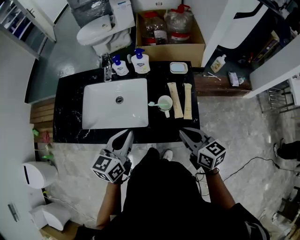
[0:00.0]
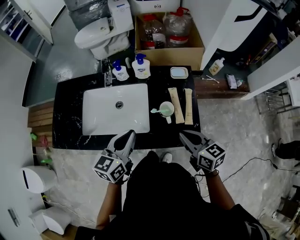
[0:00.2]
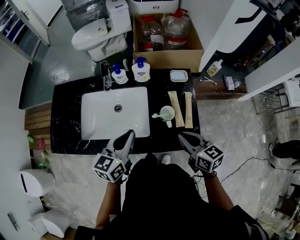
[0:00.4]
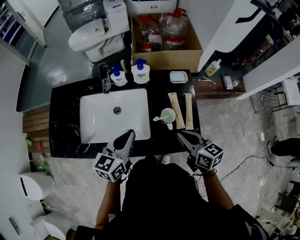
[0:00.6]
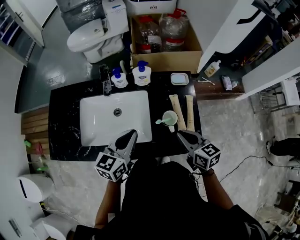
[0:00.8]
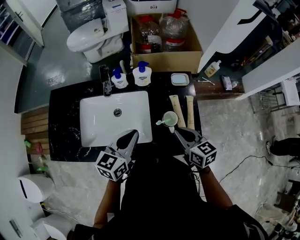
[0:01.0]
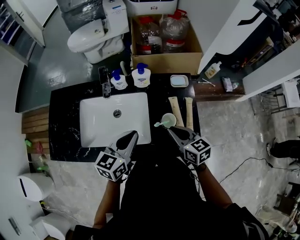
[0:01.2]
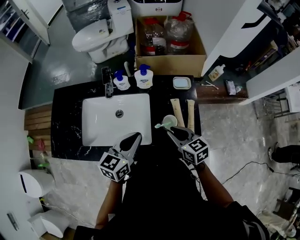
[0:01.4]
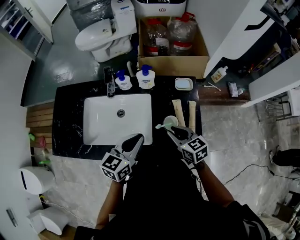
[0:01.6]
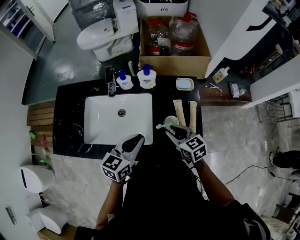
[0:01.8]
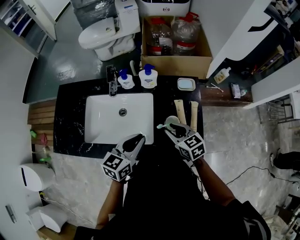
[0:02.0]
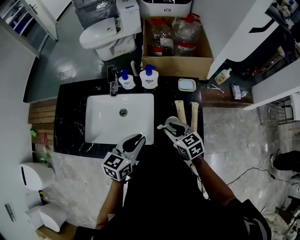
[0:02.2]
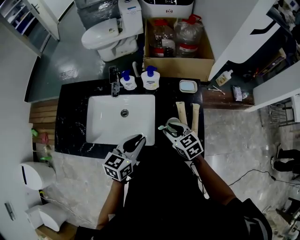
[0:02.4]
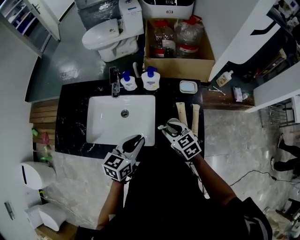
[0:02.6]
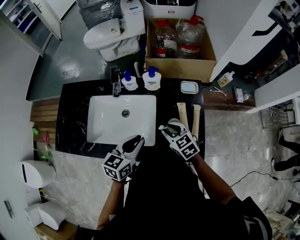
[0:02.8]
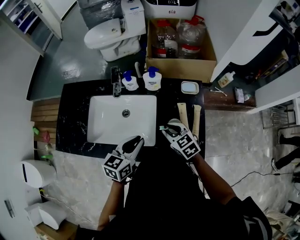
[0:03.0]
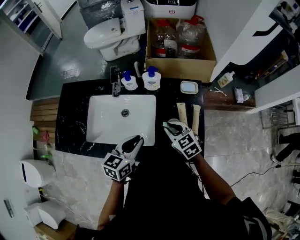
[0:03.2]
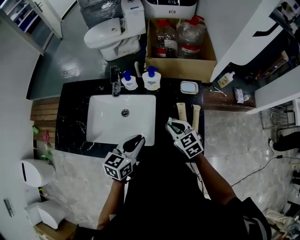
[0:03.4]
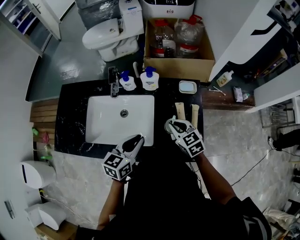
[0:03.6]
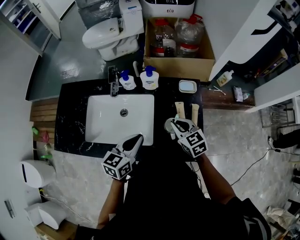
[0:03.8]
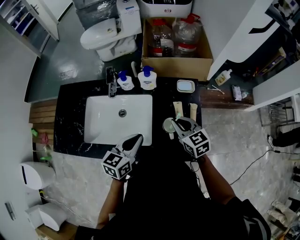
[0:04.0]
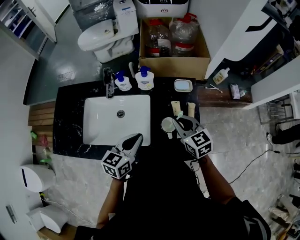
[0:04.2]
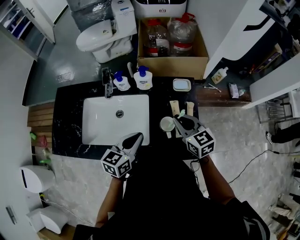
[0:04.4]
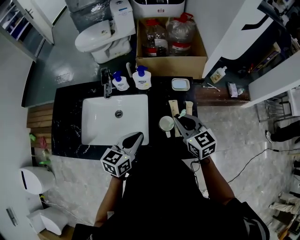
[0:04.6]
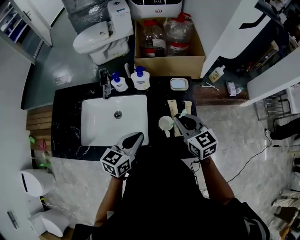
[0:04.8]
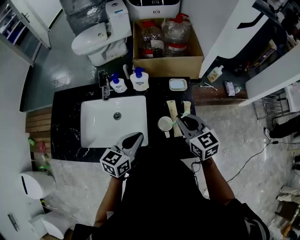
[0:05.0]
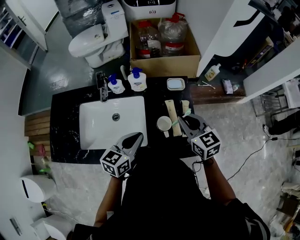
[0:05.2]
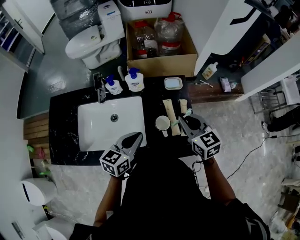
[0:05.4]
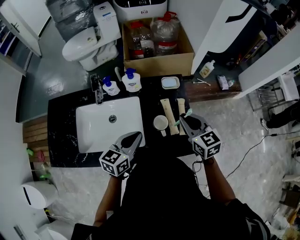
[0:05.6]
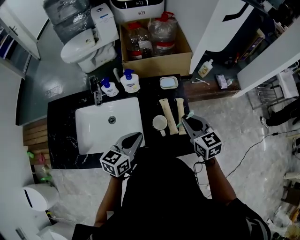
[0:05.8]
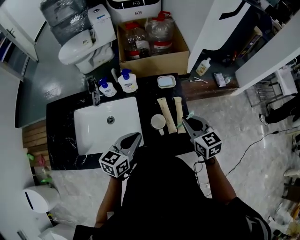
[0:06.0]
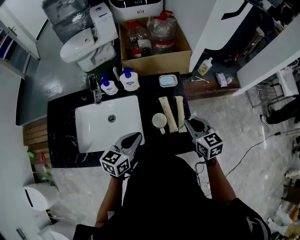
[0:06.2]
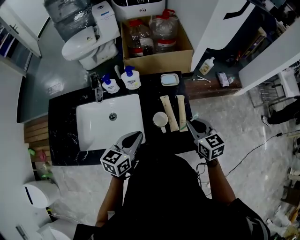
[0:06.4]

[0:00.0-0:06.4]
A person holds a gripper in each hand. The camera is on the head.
0:00.0 to 0:01.6: The left gripper heads forward, covering about 5 cm. The right gripper goes some 15 cm forward, downward and to the left.
0:01.6 to 0:03.2: The grippers stay close to where they were, moving slightly.
0:03.2 to 0:04.8: The right gripper goes roughly 15 cm upward and to the right, and turns by roughly 20 degrees.
0:04.8 to 0:06.4: The right gripper goes roughly 10 cm to the right.

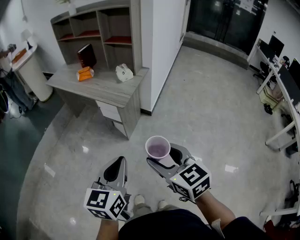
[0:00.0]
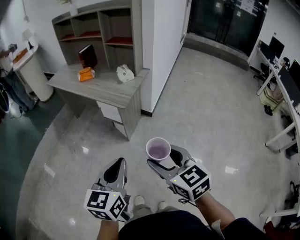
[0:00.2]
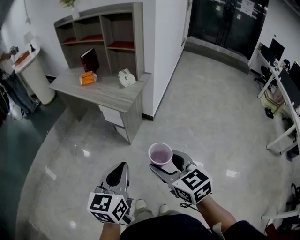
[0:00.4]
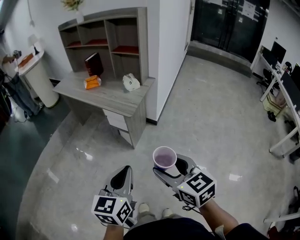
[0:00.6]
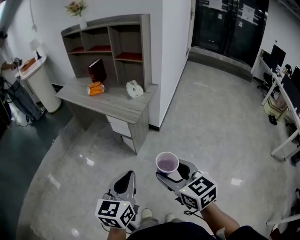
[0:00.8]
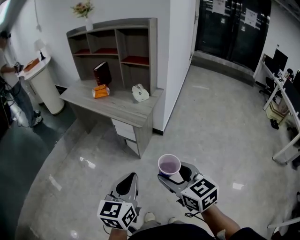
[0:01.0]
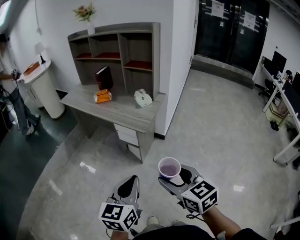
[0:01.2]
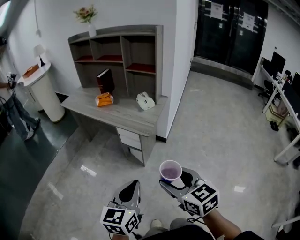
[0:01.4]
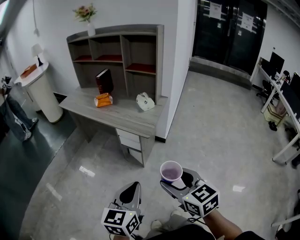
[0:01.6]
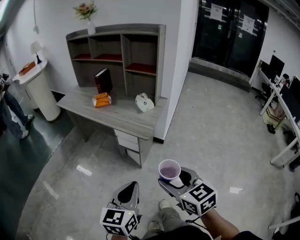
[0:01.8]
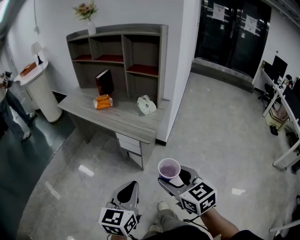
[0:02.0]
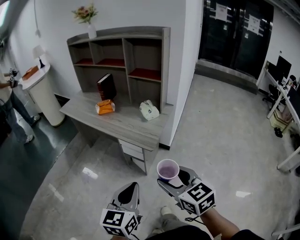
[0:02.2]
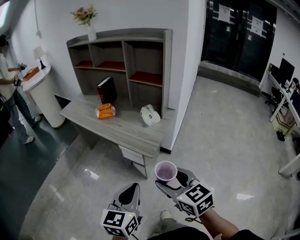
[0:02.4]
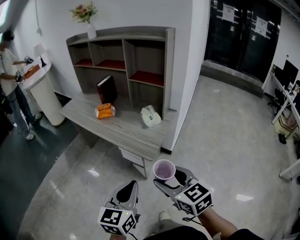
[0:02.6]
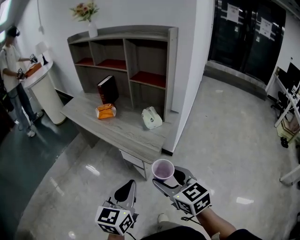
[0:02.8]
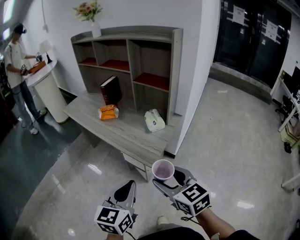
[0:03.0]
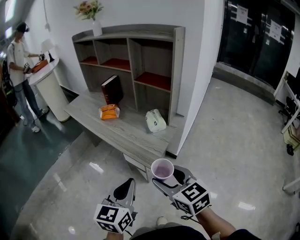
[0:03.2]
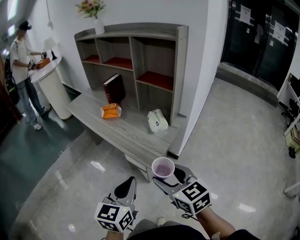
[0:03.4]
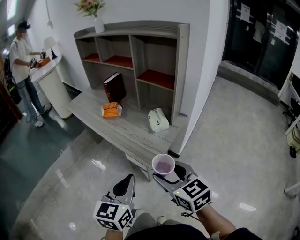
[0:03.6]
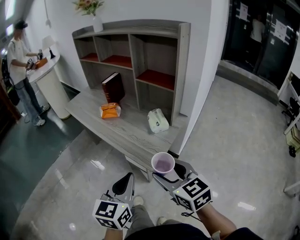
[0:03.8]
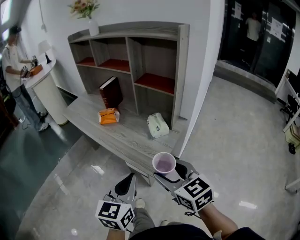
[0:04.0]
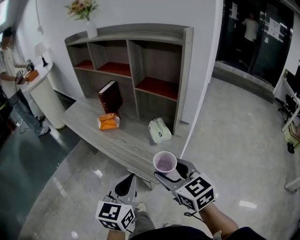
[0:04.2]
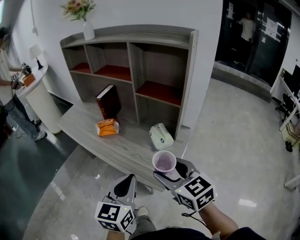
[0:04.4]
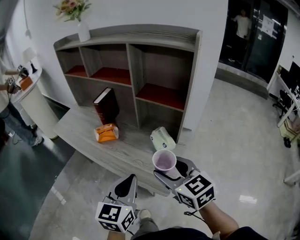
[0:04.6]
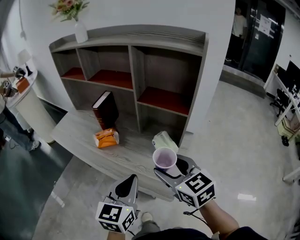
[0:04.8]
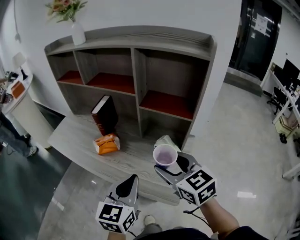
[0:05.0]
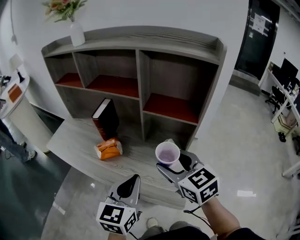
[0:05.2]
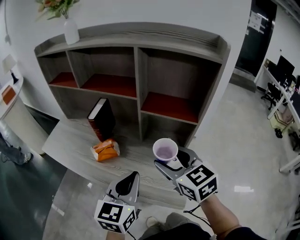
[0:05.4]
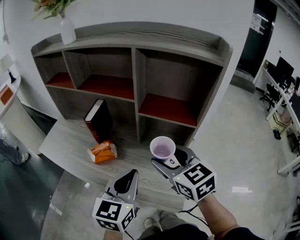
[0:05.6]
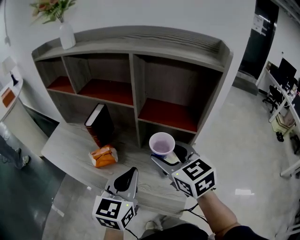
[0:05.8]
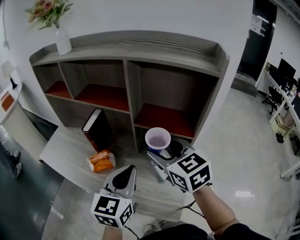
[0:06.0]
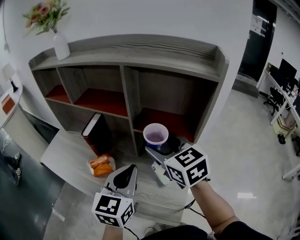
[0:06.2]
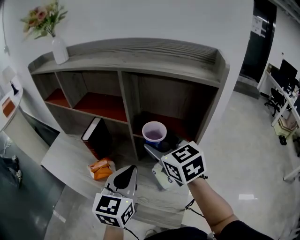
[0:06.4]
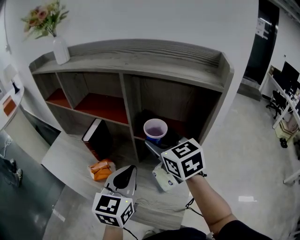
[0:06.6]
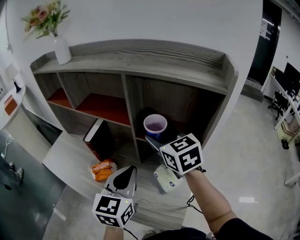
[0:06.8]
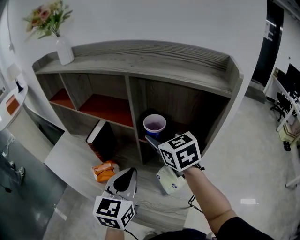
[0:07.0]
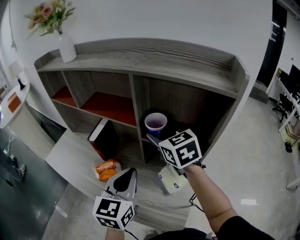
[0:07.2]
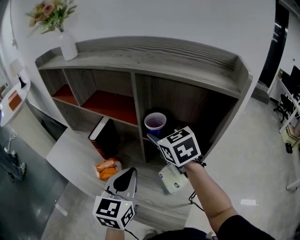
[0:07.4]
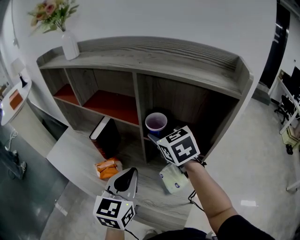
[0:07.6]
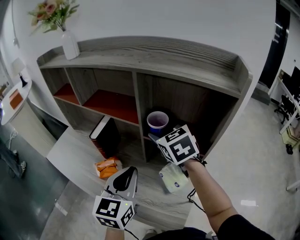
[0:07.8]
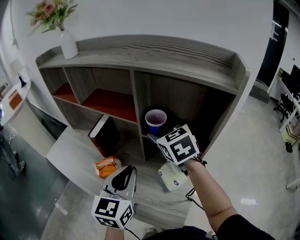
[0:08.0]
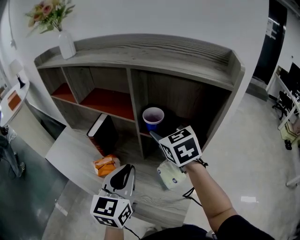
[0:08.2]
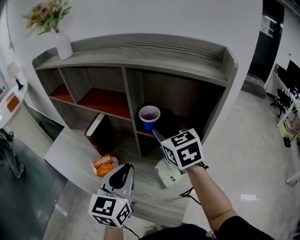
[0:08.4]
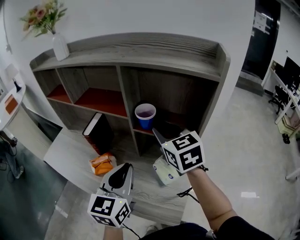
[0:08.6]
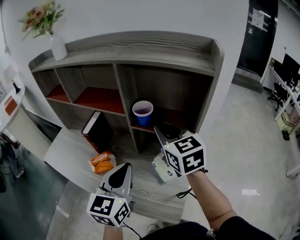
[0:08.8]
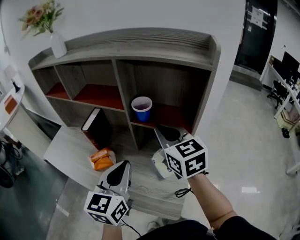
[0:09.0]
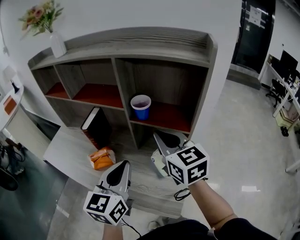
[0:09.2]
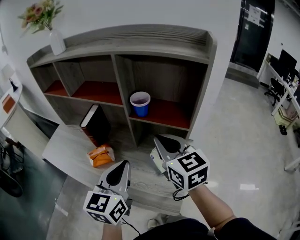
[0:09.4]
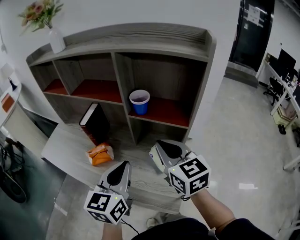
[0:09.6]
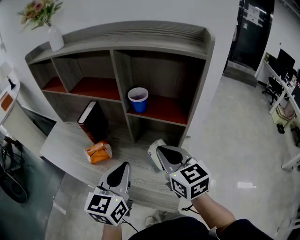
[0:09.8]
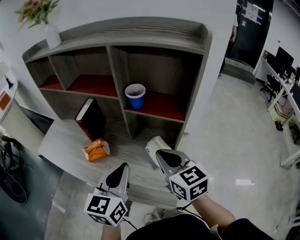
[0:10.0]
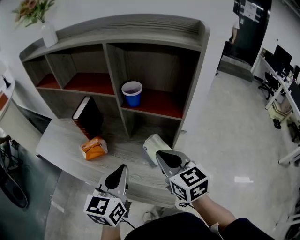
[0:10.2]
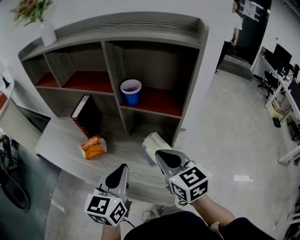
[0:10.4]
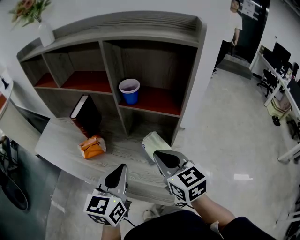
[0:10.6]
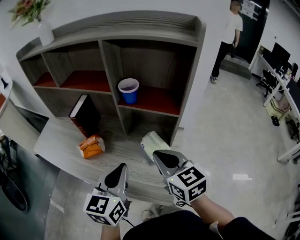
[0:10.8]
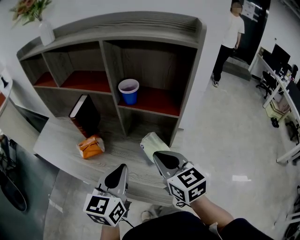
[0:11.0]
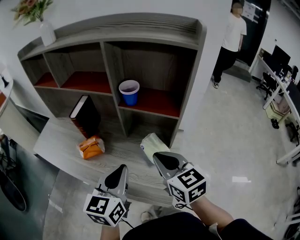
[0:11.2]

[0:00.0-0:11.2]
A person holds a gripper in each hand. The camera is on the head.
0:00.0 to 0:01.6: Both grippers move to the left and forward, some 10 cm.
0:01.6 to 0:03.2: The two grippers go about 20 cm forward.
0:03.2 to 0:04.8: Both grippers travel together forward, roughly 25 cm.
0:04.8 to 0:06.4: Both grippers travel together forward, about 20 cm.
0:06.4 to 0:08.0: The right gripper heads forward, covering roughly 10 cm.
0:08.0 to 0:09.6: The right gripper moves backward, roughly 15 cm, rotates approximately 20 degrees, and closes up. The left gripper is displaced backward by roughly 5 cm.
0:09.6 to 0:11.2: The right gripper goes approximately 10 cm backward and downward.

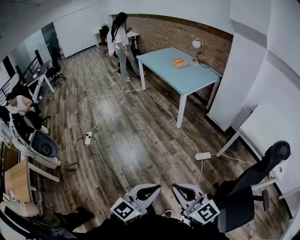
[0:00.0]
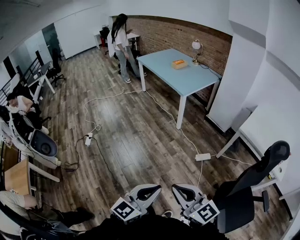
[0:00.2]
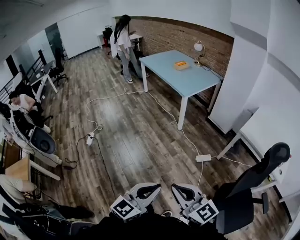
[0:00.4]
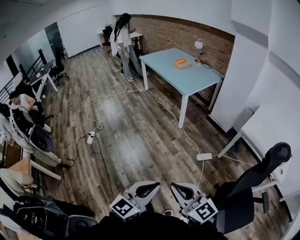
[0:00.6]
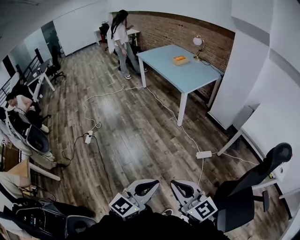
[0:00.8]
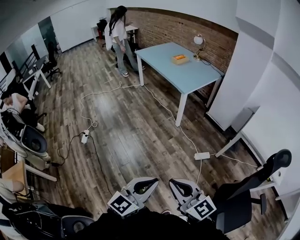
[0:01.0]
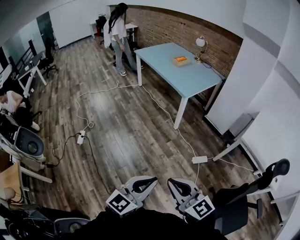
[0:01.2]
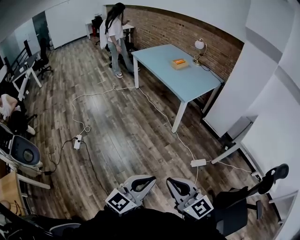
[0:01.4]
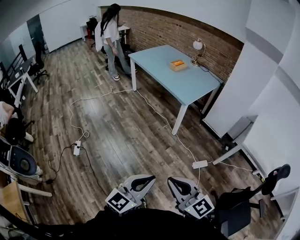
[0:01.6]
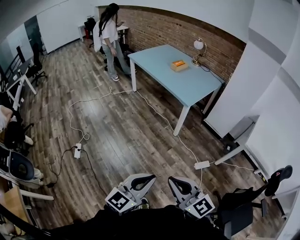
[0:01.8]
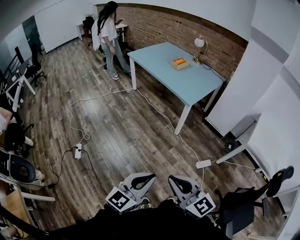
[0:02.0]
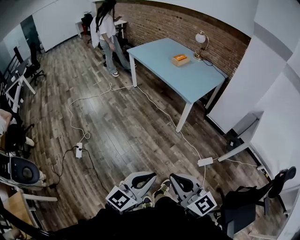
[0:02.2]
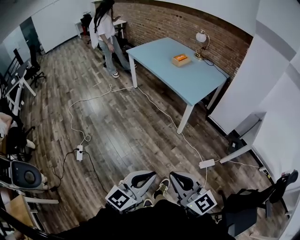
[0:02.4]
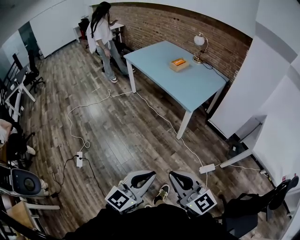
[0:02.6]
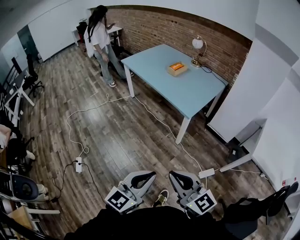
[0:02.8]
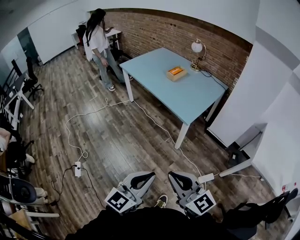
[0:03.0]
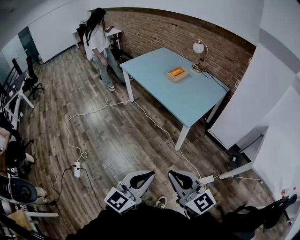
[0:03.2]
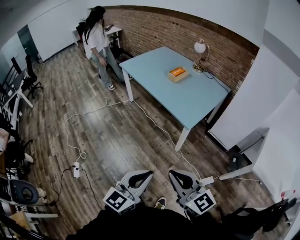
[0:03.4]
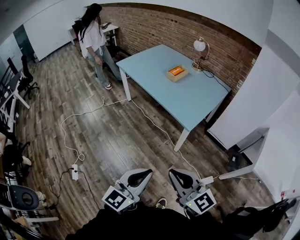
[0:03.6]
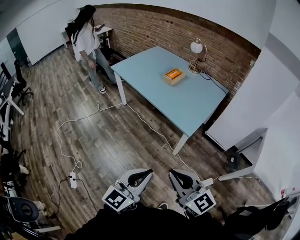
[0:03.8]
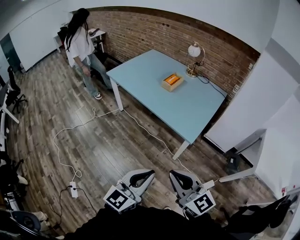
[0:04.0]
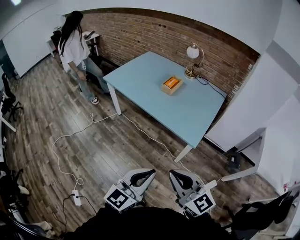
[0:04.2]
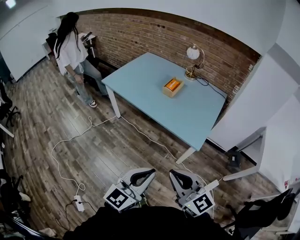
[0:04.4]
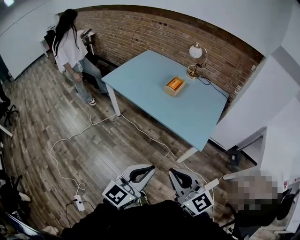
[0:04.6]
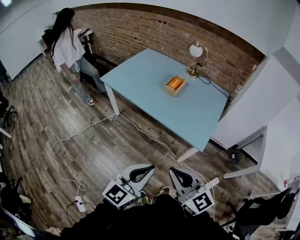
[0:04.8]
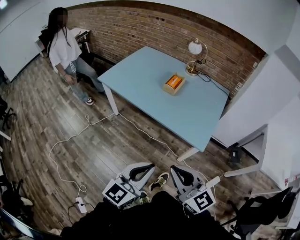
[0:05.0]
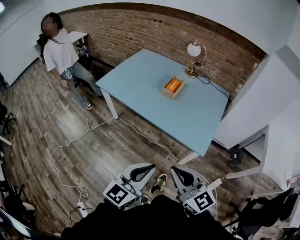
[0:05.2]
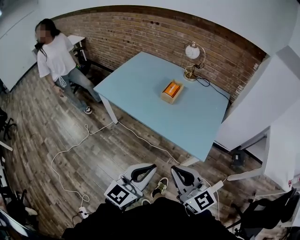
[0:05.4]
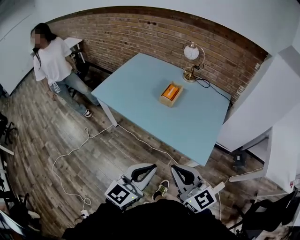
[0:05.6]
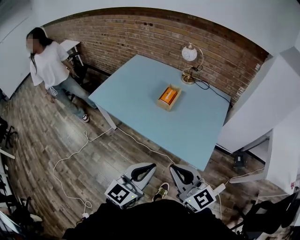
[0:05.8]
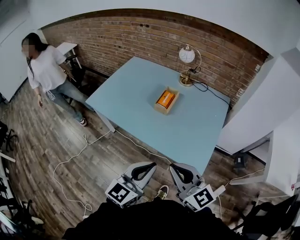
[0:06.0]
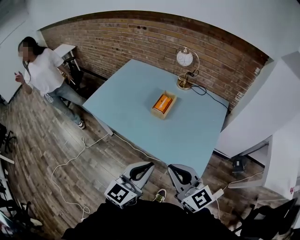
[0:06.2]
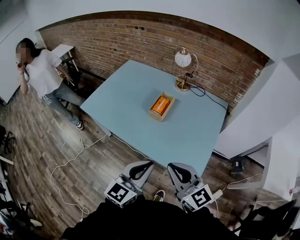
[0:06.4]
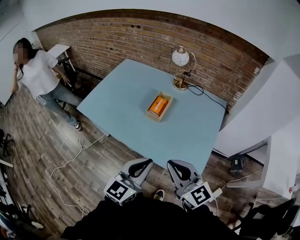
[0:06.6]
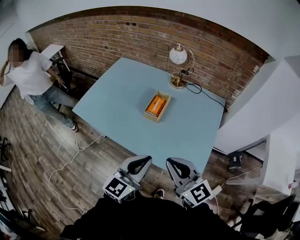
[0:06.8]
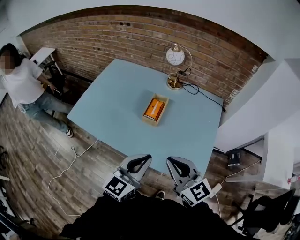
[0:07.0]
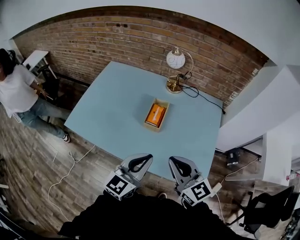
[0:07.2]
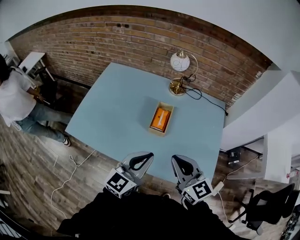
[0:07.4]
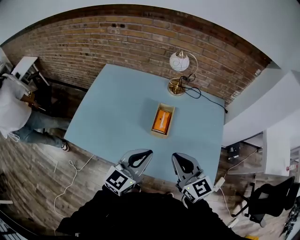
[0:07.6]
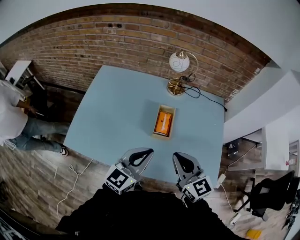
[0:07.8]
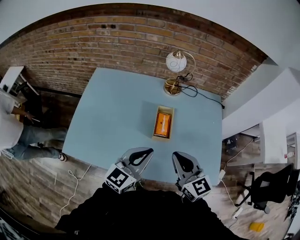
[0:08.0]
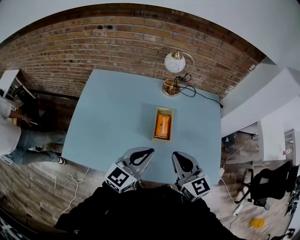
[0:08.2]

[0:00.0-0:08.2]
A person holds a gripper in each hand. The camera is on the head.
0:00.0 to 0:01.6: The two grippers go approximately 30 cm forward and to the left.
0:01.6 to 0:03.2: Both grippers travel together forward, roughly 30 cm.
0:03.2 to 0:05.0: The grippers both shift forward and to the left by roughly 40 cm.
0:05.0 to 0:06.6: The two grippers go some 30 cm forward.
0:06.6 to 0:08.2: The left gripper changes place by about 35 cm, and rotates approximately 30 degrees; the right gripper moves roughly 30 cm, and rotates about 30 degrees.
